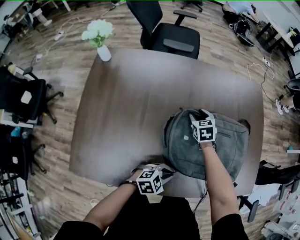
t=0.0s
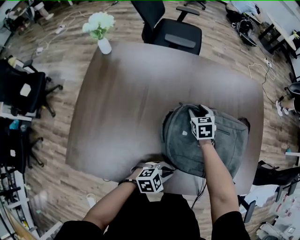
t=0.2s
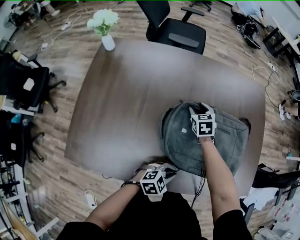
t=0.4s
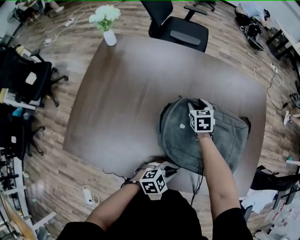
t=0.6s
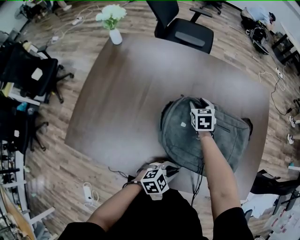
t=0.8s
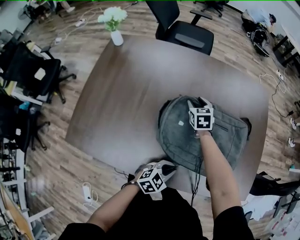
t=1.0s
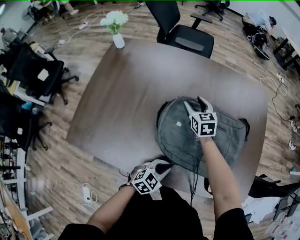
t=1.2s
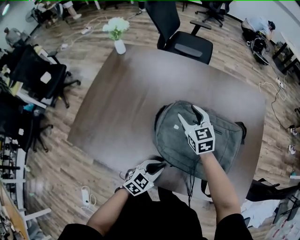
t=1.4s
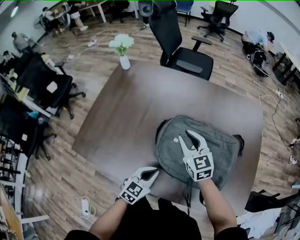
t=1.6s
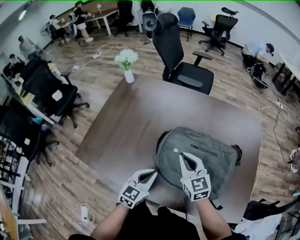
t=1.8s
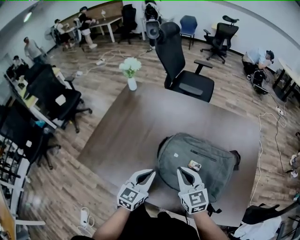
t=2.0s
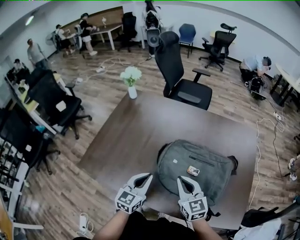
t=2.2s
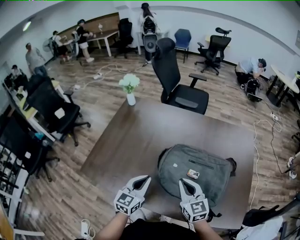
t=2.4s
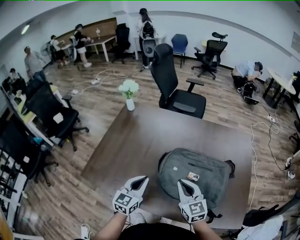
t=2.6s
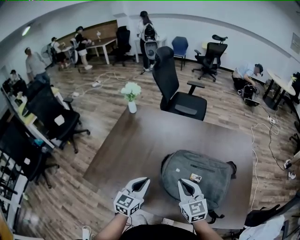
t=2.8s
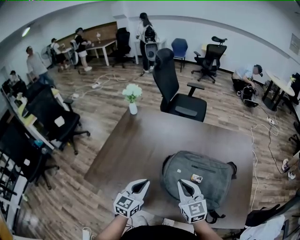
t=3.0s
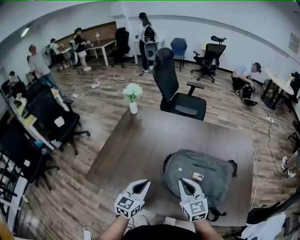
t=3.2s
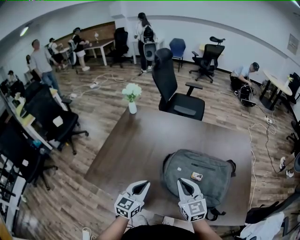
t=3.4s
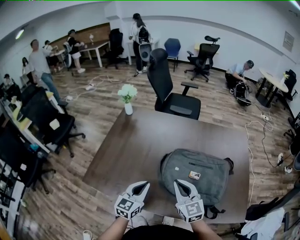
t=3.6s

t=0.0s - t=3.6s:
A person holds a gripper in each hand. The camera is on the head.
t=0.0s - t=1.8s: The left gripper is displaced upward by roughly 10 cm, and swivels about 60 degrees. The right gripper changes place by some 25 cm, tips its fingers upward by about 30 degrees, and closes.
t=1.8s - t=3.6s: The right gripper heads backward, to the left and upward, covering about 10 cm. The left gripper shifts some 10 cm to the left and upward.

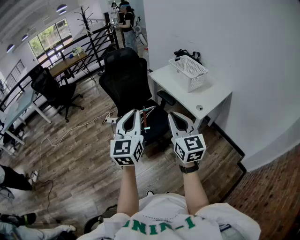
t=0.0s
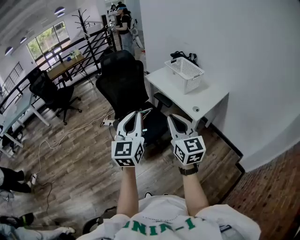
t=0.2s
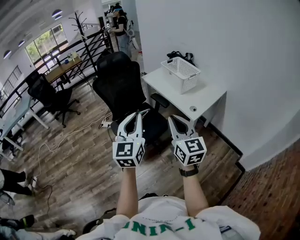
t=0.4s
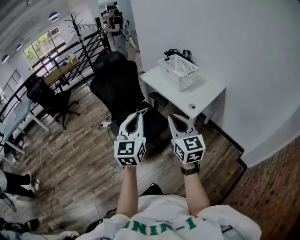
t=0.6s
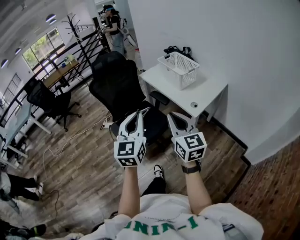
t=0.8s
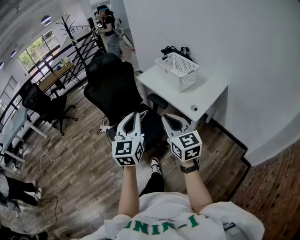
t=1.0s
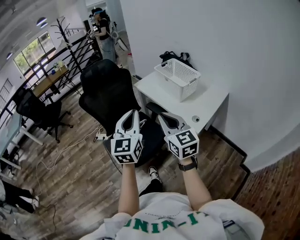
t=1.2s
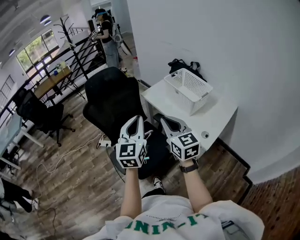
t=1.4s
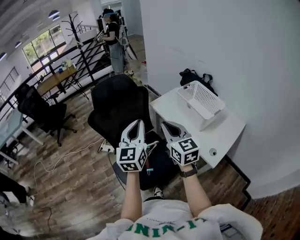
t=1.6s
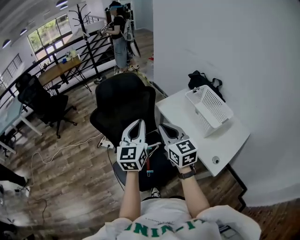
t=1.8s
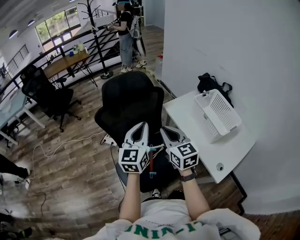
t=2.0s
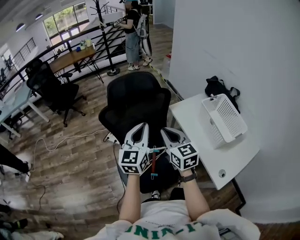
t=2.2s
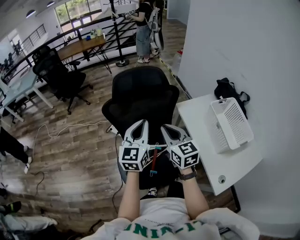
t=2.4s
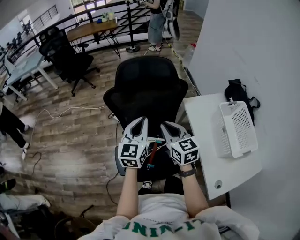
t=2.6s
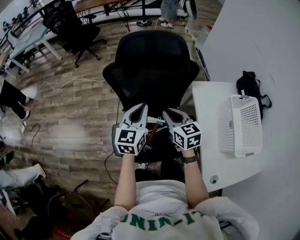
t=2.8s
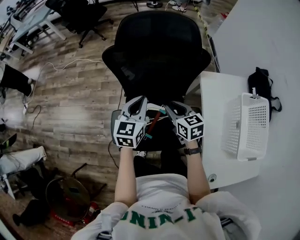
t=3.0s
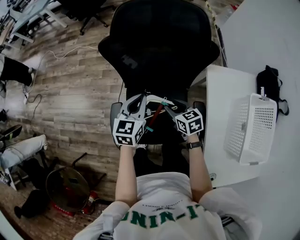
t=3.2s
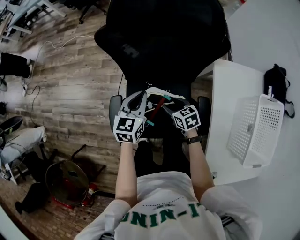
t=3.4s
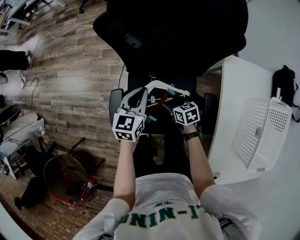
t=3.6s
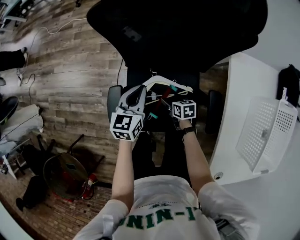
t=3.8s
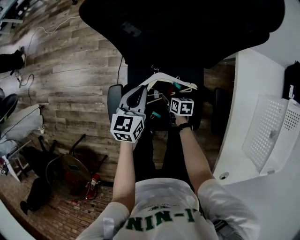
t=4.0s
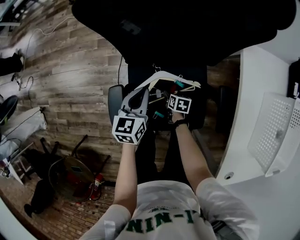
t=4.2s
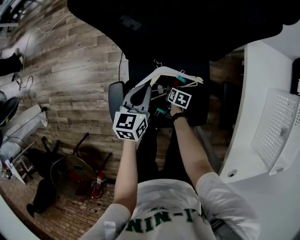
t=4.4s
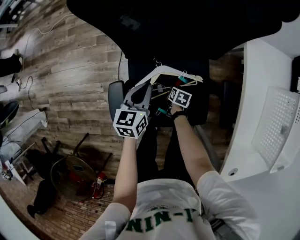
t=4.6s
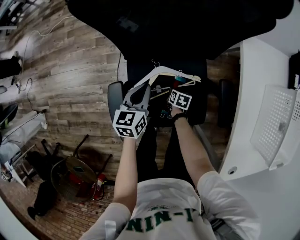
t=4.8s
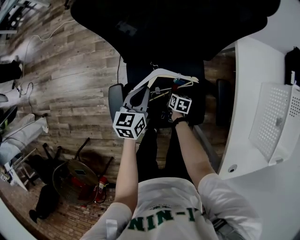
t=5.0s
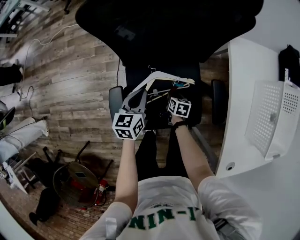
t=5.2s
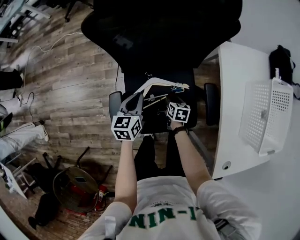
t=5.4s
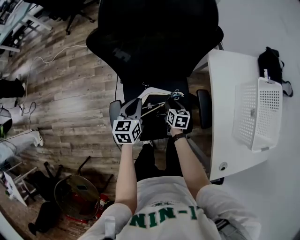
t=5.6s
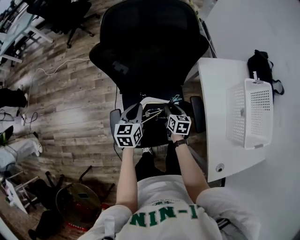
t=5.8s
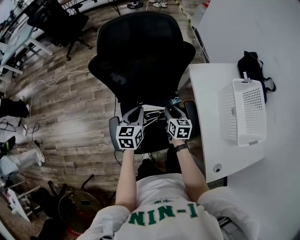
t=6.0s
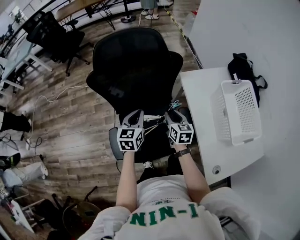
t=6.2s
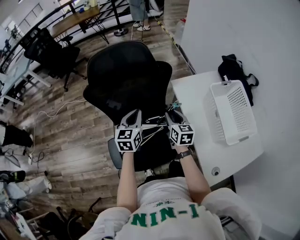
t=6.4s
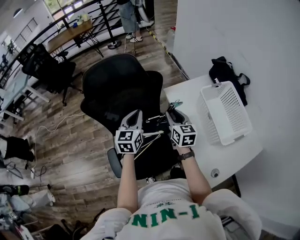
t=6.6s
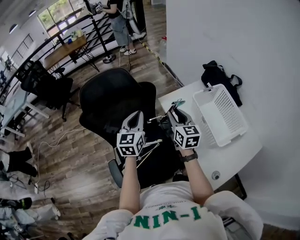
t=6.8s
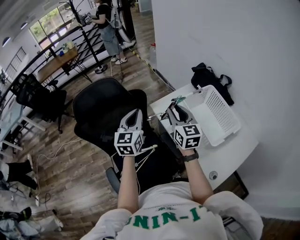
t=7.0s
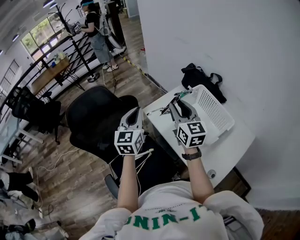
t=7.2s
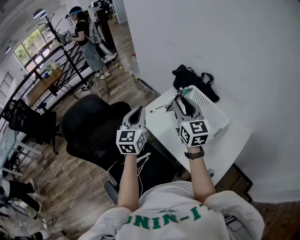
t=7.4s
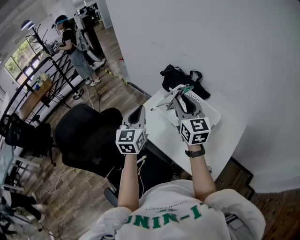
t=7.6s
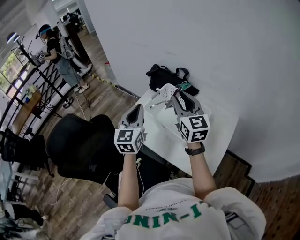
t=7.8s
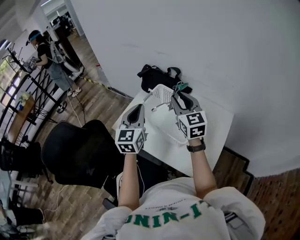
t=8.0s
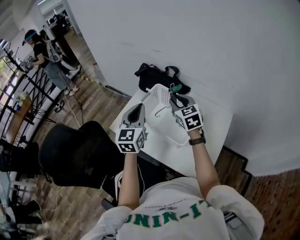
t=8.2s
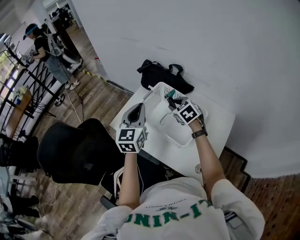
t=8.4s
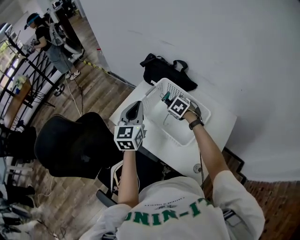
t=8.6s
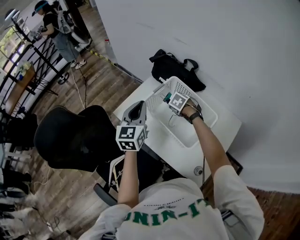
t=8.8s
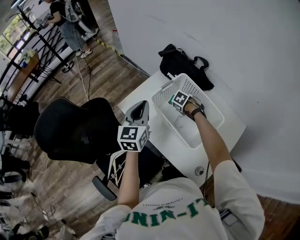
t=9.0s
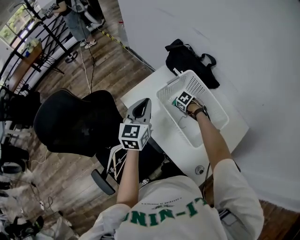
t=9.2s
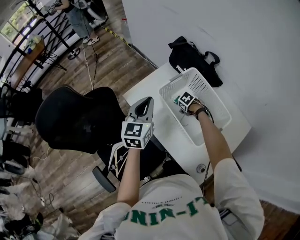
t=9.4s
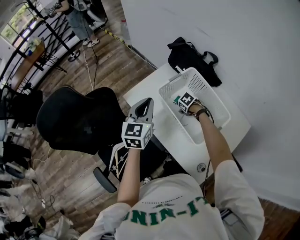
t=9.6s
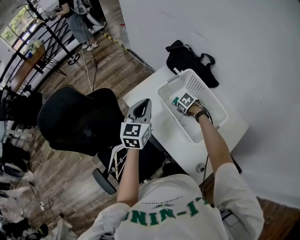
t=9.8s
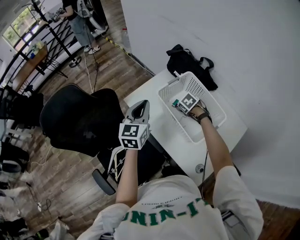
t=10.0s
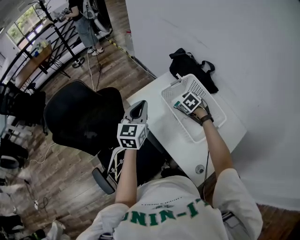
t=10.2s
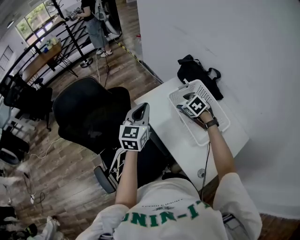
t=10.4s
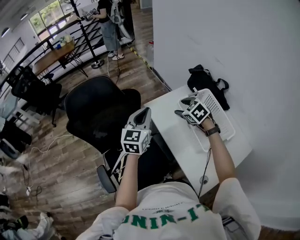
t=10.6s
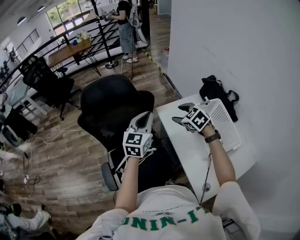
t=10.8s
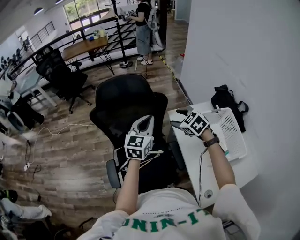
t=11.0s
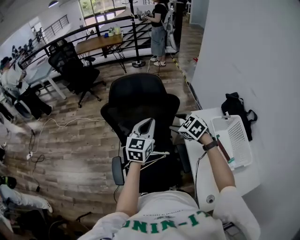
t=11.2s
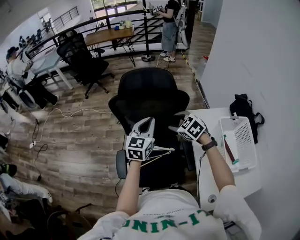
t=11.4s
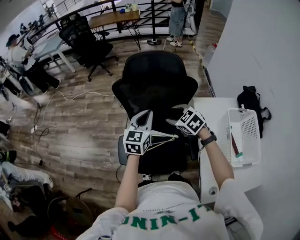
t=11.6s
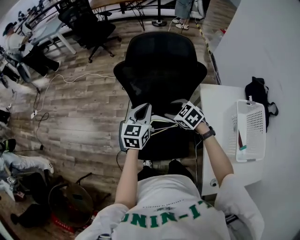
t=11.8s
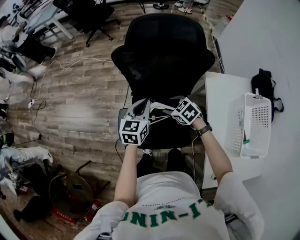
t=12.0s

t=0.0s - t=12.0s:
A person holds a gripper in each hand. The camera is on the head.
t=0.0s - t=1.6s: The pair of grippers is taken forward, some 40 cm.
t=1.6s - t=3.0s: Both grippers move downward, some 25 cm. The left gripper turns by approximately 30 degrees; the right gripper rotates approximately 50 degrees.
t=3.0s - t=4.4s: The right gripper is displaced downward by about 50 cm, angles its fingers downward, by roughly 30 degrees, and opens up. The left gripper travels downward by approximately 25 cm.
t=4.4s - t=6.0s: The right gripper shifts roughly 35 cm upward, tips its fingers upward by about 30 degrees, and closes up; the left gripper shifts some 20 cm upward.
t=6.0s - t=7.6s: The left gripper shifts by roughly 50 cm, and turns by some 50 degrees. Meanwhile the right gripper travels upward by approximately 40 cm, and angles its fingers upward, by about 40 degrees.
t=7.6s - t=9.0s: The right gripper goes some 40 cm downward, and tilts its fingers some 80 degrees downward, while the left gripper travels downward by approximately 10 cm.
t=9.0s - t=10.4s: The left gripper ends up some 10 cm from where it was. The right gripper goes about 20 cm upward, changes its angle by approximately 30 degrees, and opens up.
t=10.4s - t=12.0s: The left gripper shifts by about 40 cm, and swivels approximately 40 degrees, while the right gripper shifts by about 50 cm, and turns by some 50 degrees.

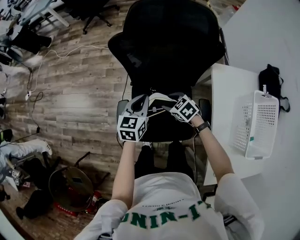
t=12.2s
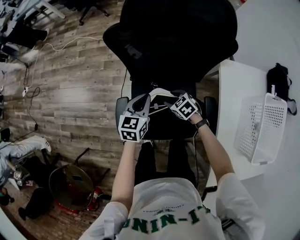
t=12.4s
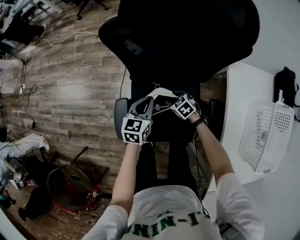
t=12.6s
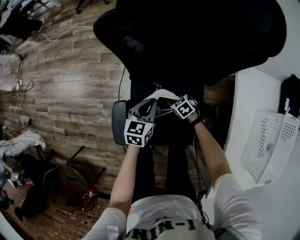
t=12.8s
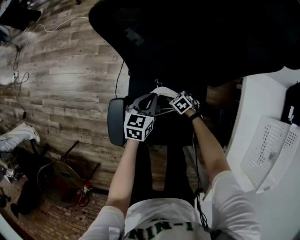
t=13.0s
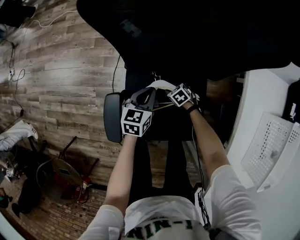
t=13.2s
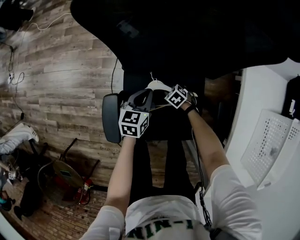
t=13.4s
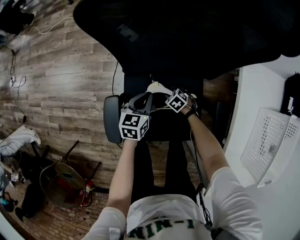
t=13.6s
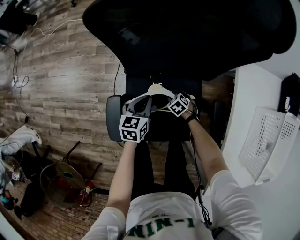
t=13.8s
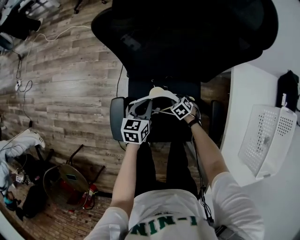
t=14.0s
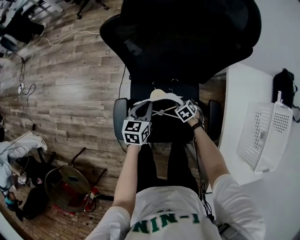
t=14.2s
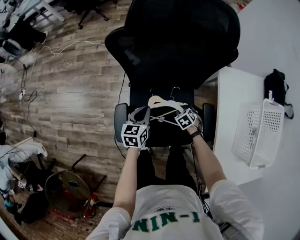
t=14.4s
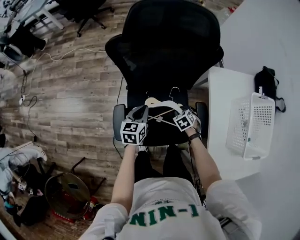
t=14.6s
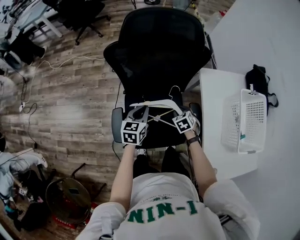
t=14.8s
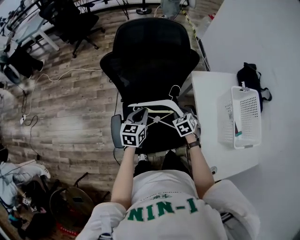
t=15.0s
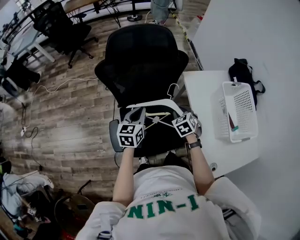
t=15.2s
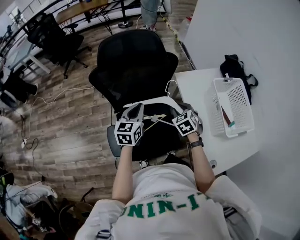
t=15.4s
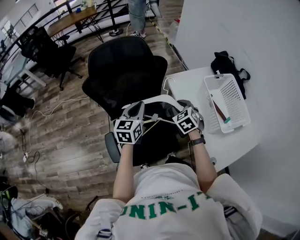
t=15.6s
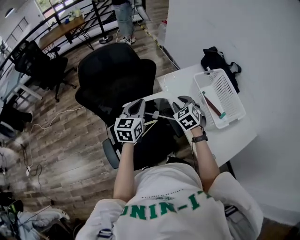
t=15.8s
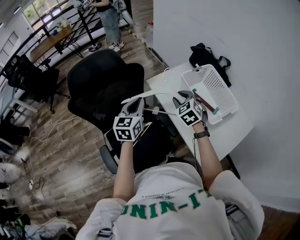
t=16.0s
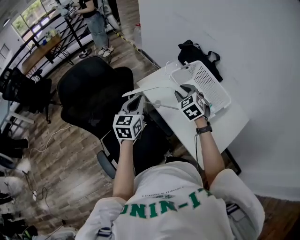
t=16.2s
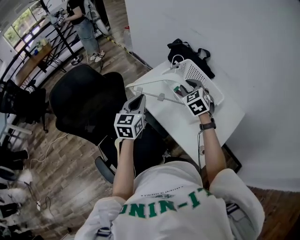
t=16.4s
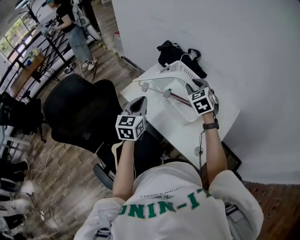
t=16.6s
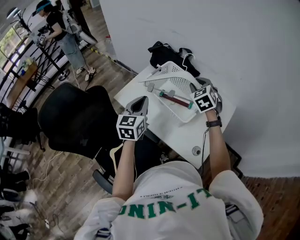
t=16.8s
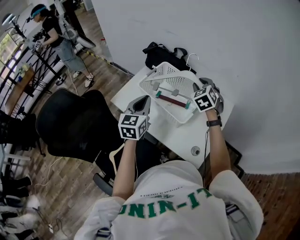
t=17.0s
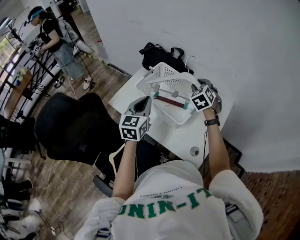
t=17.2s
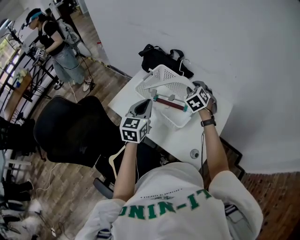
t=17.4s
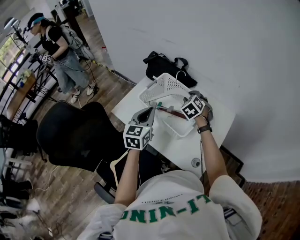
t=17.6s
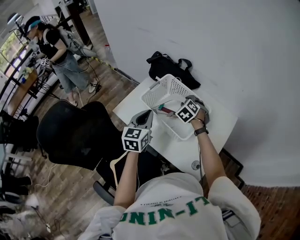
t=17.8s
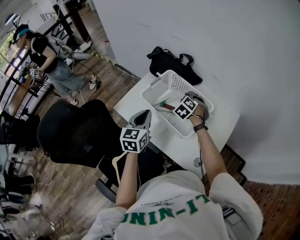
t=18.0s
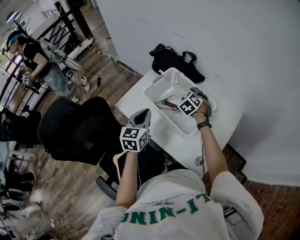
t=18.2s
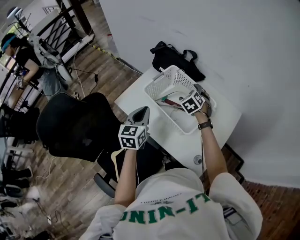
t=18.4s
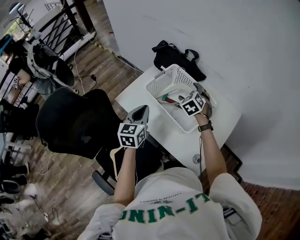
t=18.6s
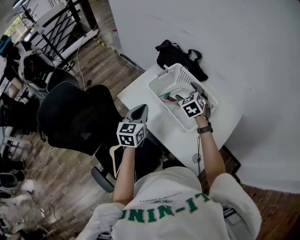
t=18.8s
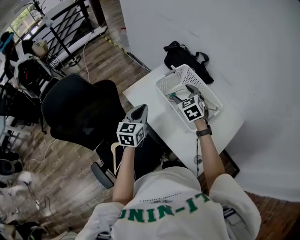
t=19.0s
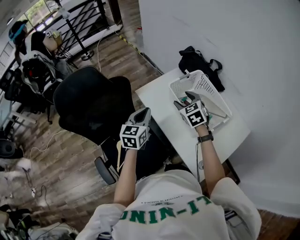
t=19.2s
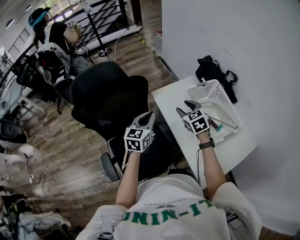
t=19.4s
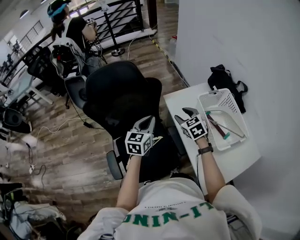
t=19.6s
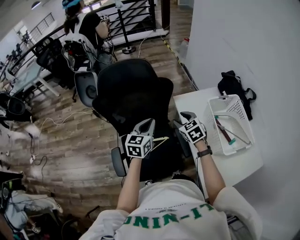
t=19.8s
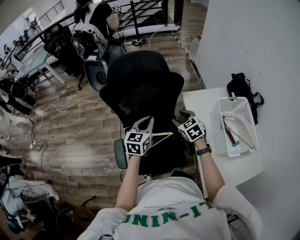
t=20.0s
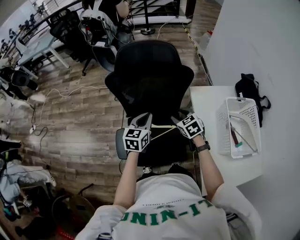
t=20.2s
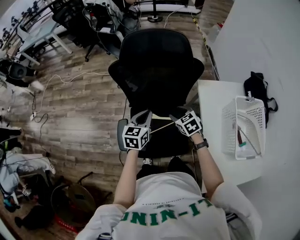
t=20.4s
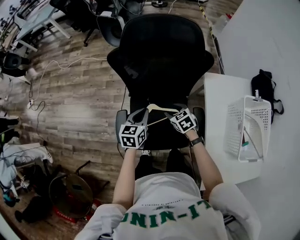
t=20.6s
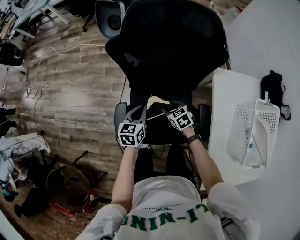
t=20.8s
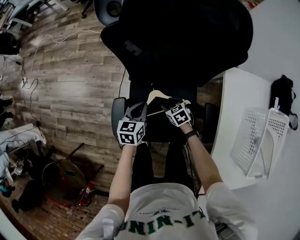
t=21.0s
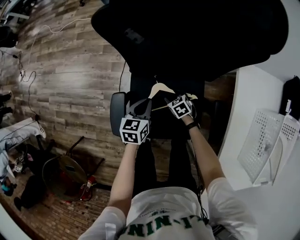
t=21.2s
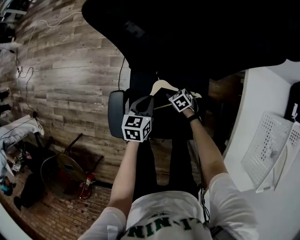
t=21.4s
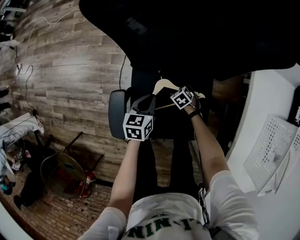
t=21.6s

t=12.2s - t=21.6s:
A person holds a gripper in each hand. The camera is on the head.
t=12.2s - t=13.8s: The grippers both shift downward by some 30 cm.
t=13.8s - t=15.4s: Both grippers travel together upward, approximately 40 cm. The left gripper turns by approximately 20 degrees. Meanwhile the right gripper changes its angle by some 40 degrees.
t=15.4s - t=17.0s: The left gripper moves about 40 cm, and rotates about 40 degrees, while the right gripper shifts by approximately 50 cm, and turns by some 50 degrees.
t=17.0s - t=18.4s: The right gripper is displaced downward and to the left by roughly 15 cm, and opens up, while the left gripper goes about 5 cm downward.
t=18.4s - t=20.0s: The left gripper shifts by some 35 cm, and turns by some 40 degrees. The right gripper moves approximately 50 cm, turns by about 50 degrees, and closes up.
t=20.0s - t=21.6s: The grippers both shift downward by approximately 50 cm. The left gripper swivels approximately 30 degrees, while the right gripper points its fingers some 30 degrees further downward.
